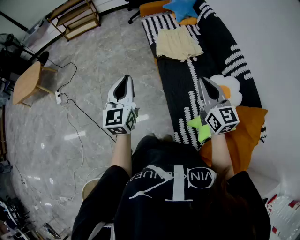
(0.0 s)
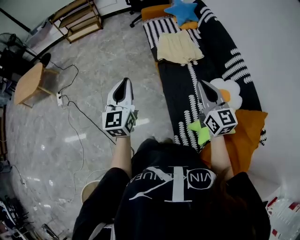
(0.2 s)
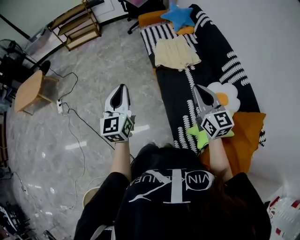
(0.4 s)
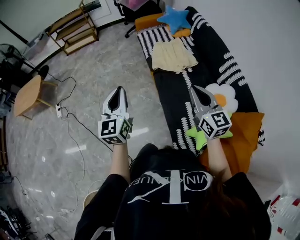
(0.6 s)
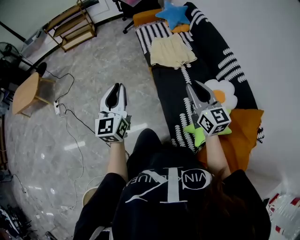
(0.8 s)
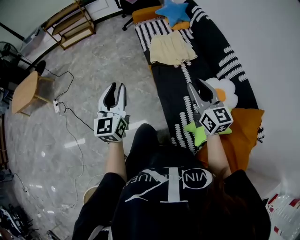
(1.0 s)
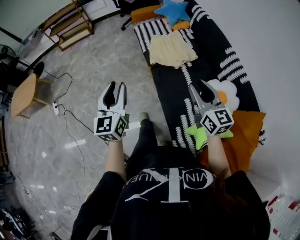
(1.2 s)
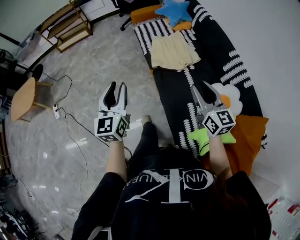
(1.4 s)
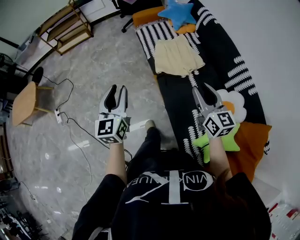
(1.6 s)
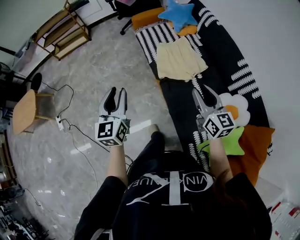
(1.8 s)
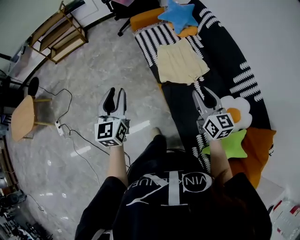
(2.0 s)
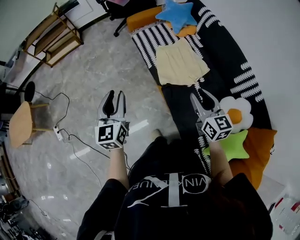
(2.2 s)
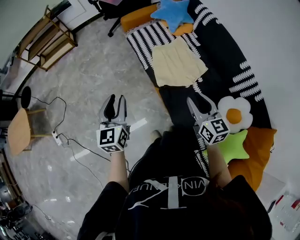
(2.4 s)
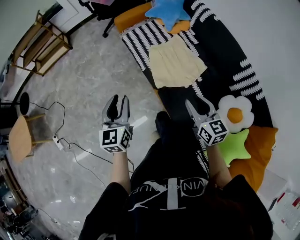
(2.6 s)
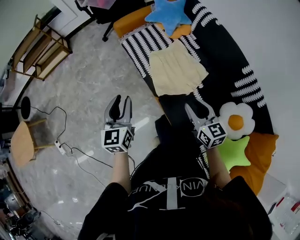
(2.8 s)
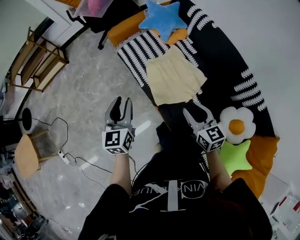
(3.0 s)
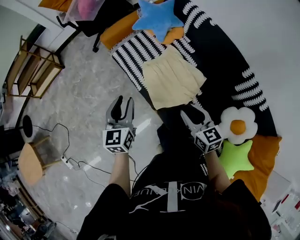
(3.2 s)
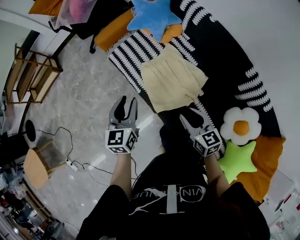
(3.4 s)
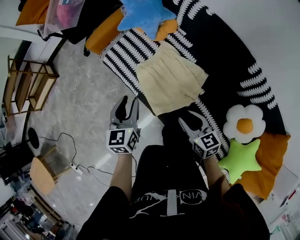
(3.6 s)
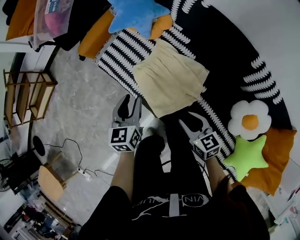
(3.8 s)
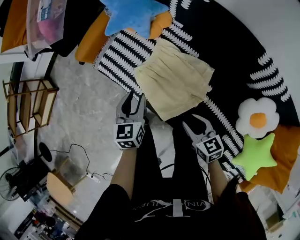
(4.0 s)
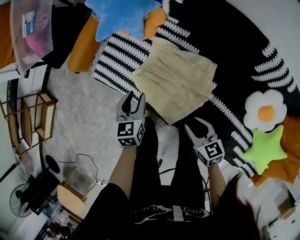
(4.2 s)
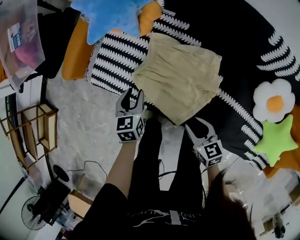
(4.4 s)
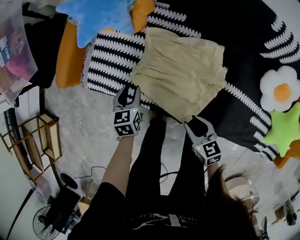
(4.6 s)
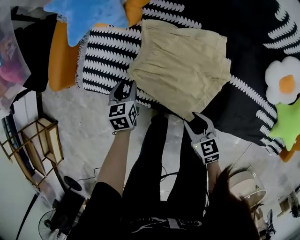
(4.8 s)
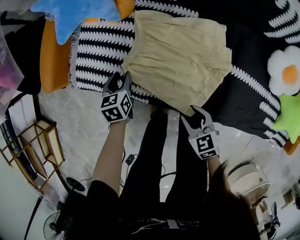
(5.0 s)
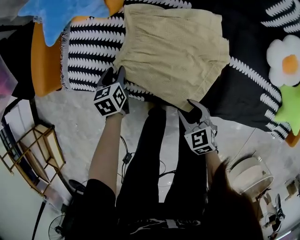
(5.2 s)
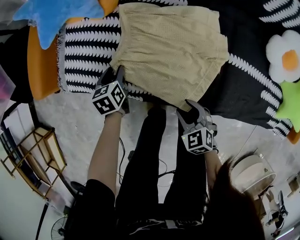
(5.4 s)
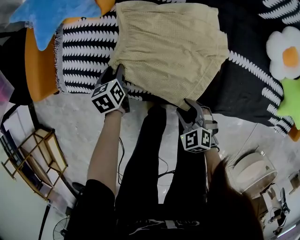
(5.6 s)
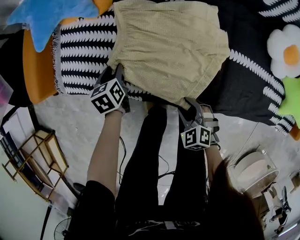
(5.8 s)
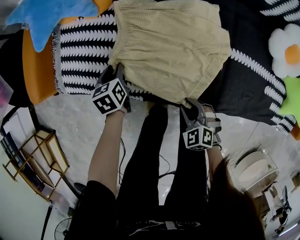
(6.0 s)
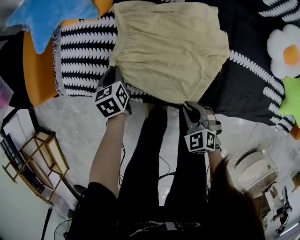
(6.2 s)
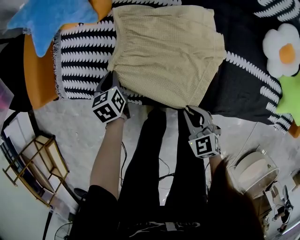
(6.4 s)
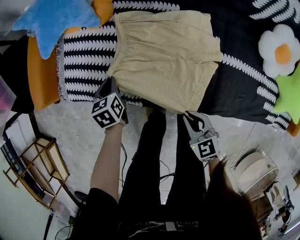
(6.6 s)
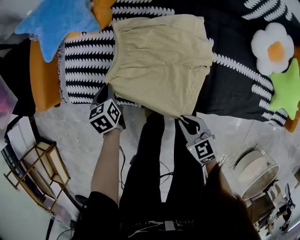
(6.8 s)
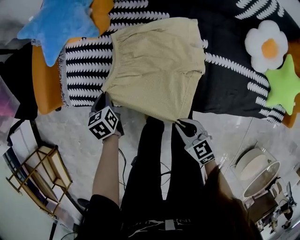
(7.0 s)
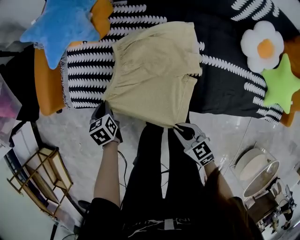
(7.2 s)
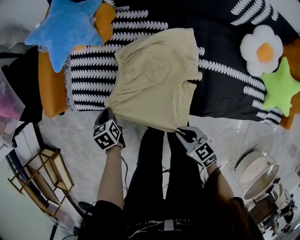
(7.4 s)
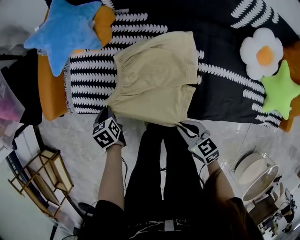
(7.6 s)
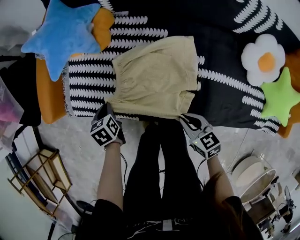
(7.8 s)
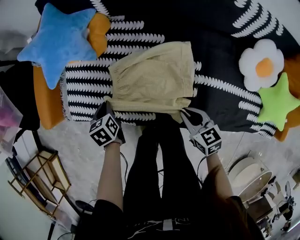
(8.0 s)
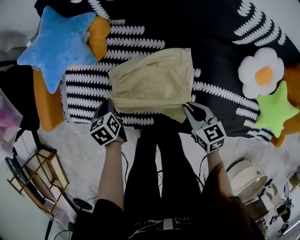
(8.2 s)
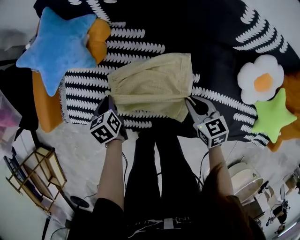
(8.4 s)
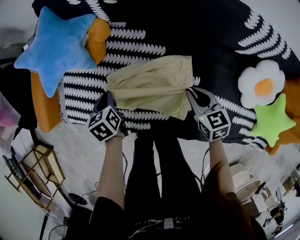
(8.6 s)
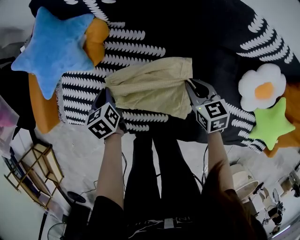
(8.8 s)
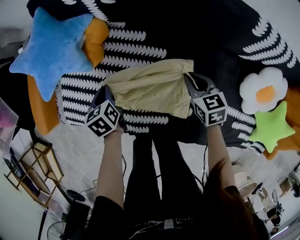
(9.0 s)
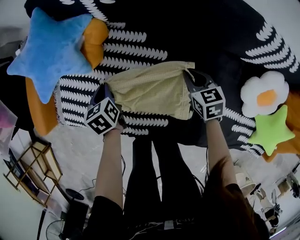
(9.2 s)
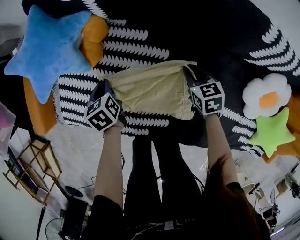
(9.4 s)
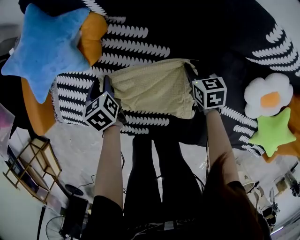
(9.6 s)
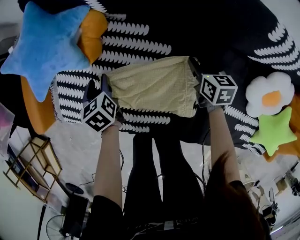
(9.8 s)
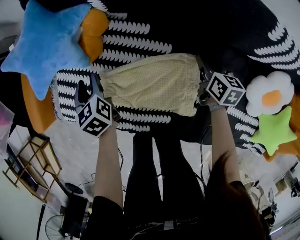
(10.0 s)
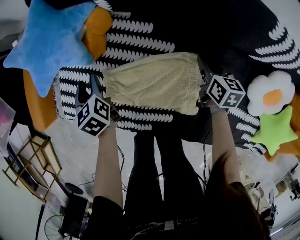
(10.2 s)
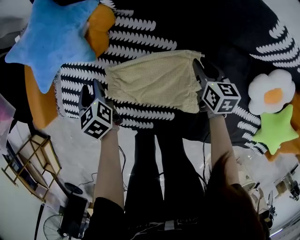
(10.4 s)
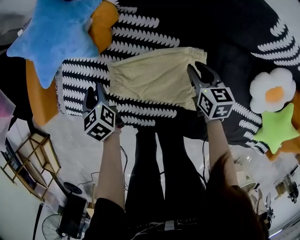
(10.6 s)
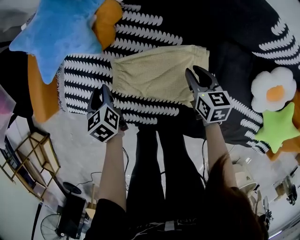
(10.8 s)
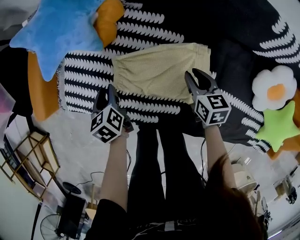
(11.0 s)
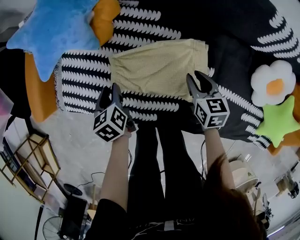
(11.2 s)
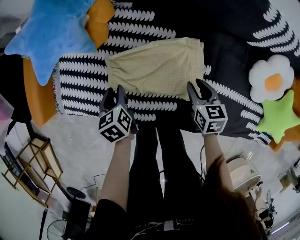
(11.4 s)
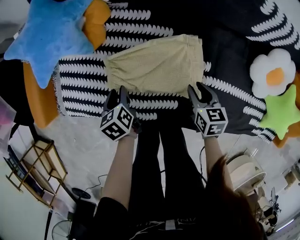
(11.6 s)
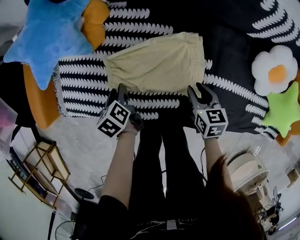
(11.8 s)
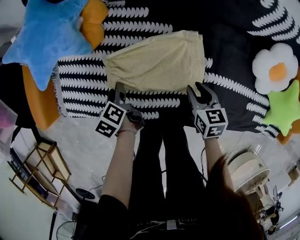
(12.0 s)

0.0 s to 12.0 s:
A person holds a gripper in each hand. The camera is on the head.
0.0 to 1.6 s: The two grippers go about 15 cm forward. The right gripper opens its fingers.
1.6 to 3.0 s: The left gripper is displaced forward by some 35 cm. Meanwhile the right gripper heads forward and downward, covering some 30 cm.
3.0 to 4.4 s: The grippers both shift downward by about 30 cm. The right gripper changes its angle by some 30 degrees, while the left gripper rotates approximately 40 degrees.
4.4 to 6.0 s: Both grippers travel together downward, some 20 cm. The right gripper rotates approximately 40 degrees.
6.0 to 7.6 s: The right gripper shifts approximately 15 cm upward, rotates some 40 degrees, and closes its fingers; the left gripper travels upward and to the left by about 10 cm.
7.6 to 9.0 s: The right gripper shifts about 35 cm forward and to the right; the left gripper travels forward and to the right by about 25 cm.
9.0 to 10.4 s: The left gripper goes approximately 5 cm to the left.
10.4 to 12.0 s: The left gripper travels backward and downward by approximately 10 cm, and turns by about 30 degrees. The right gripper travels backward and to the left by approximately 20 cm.

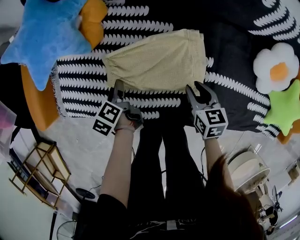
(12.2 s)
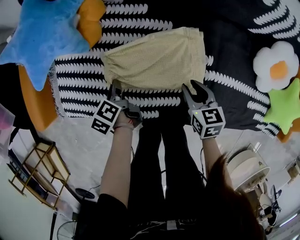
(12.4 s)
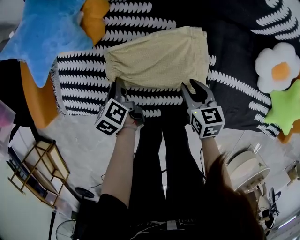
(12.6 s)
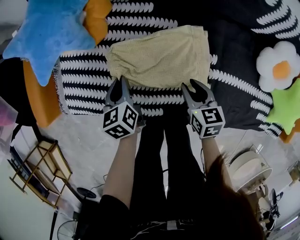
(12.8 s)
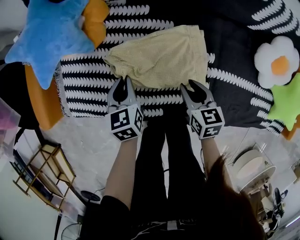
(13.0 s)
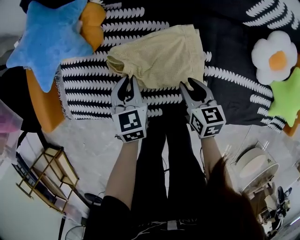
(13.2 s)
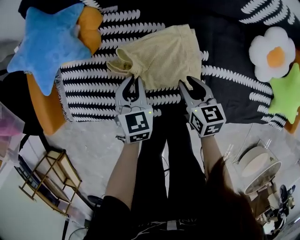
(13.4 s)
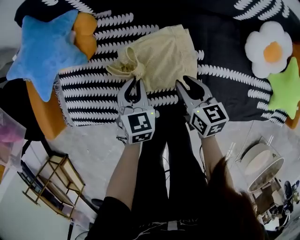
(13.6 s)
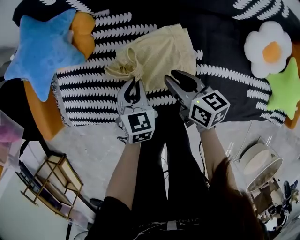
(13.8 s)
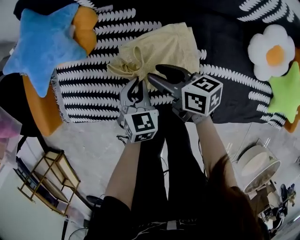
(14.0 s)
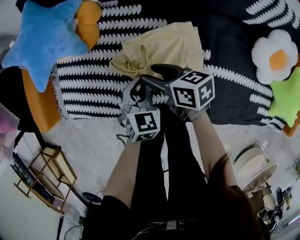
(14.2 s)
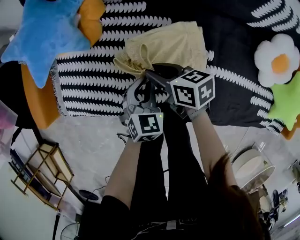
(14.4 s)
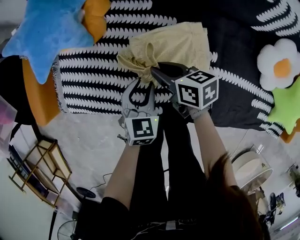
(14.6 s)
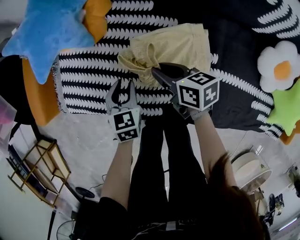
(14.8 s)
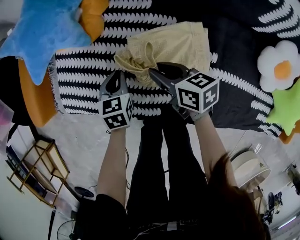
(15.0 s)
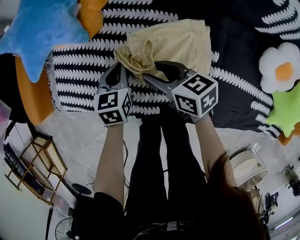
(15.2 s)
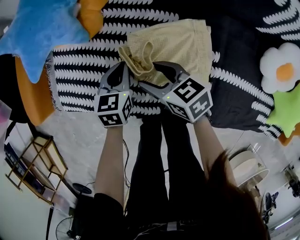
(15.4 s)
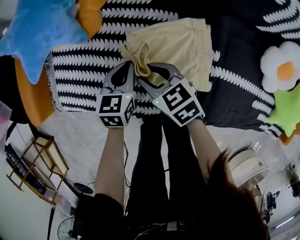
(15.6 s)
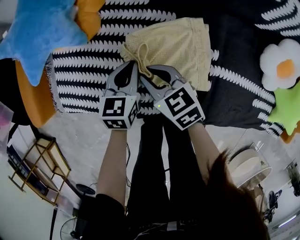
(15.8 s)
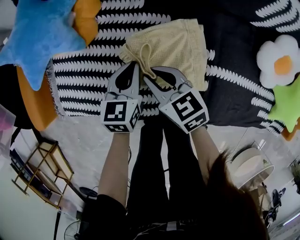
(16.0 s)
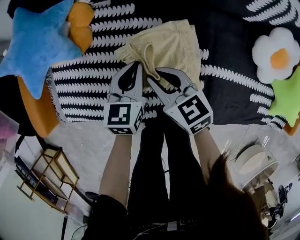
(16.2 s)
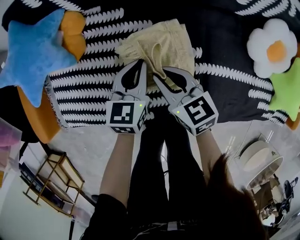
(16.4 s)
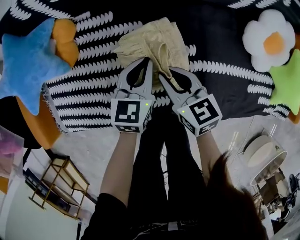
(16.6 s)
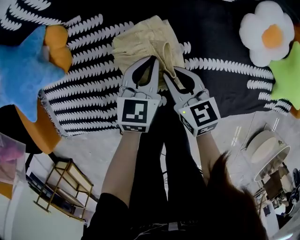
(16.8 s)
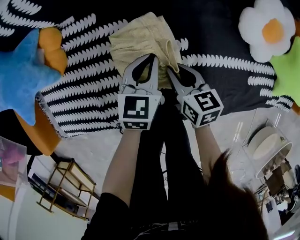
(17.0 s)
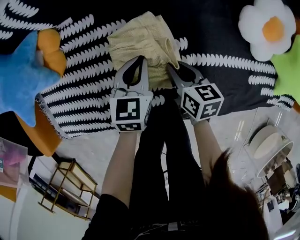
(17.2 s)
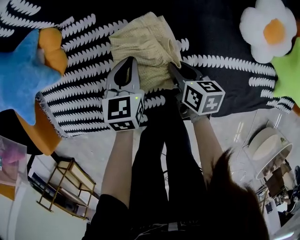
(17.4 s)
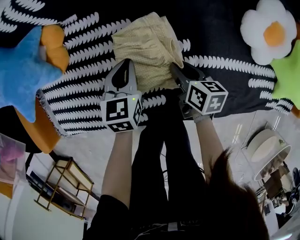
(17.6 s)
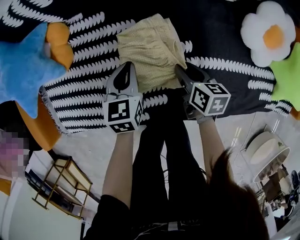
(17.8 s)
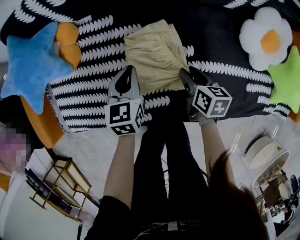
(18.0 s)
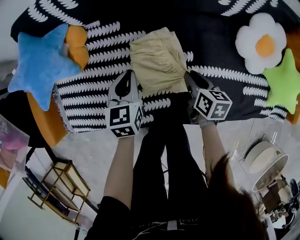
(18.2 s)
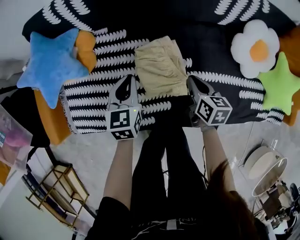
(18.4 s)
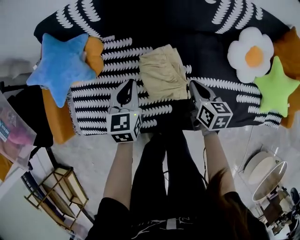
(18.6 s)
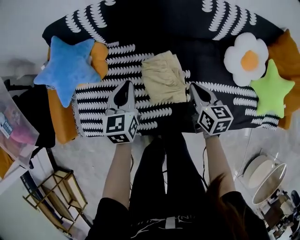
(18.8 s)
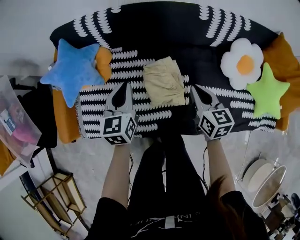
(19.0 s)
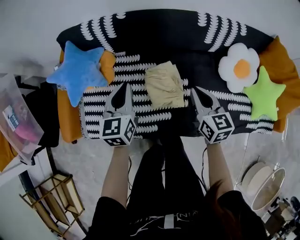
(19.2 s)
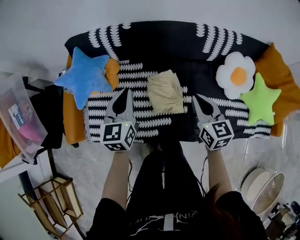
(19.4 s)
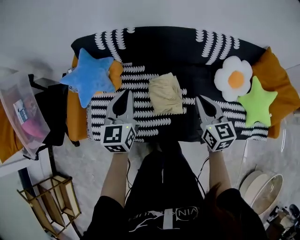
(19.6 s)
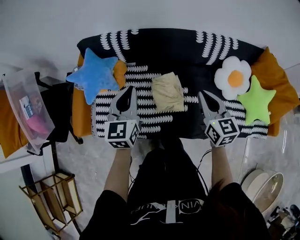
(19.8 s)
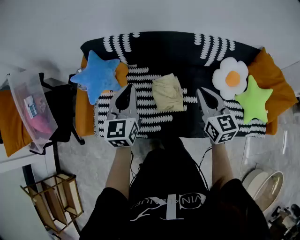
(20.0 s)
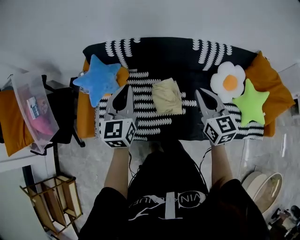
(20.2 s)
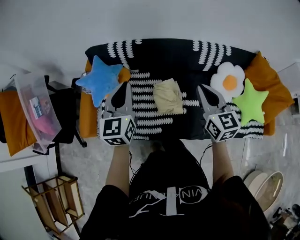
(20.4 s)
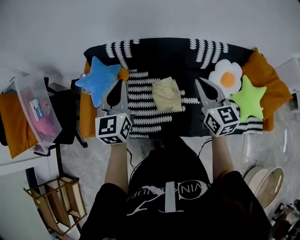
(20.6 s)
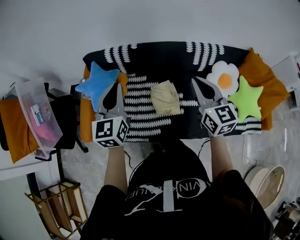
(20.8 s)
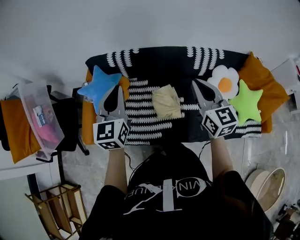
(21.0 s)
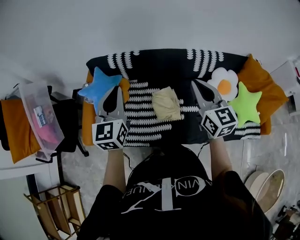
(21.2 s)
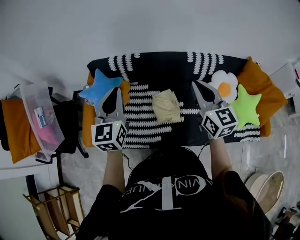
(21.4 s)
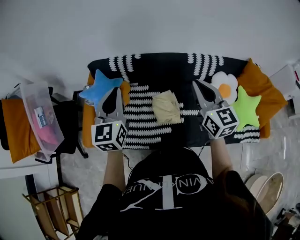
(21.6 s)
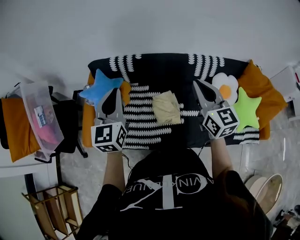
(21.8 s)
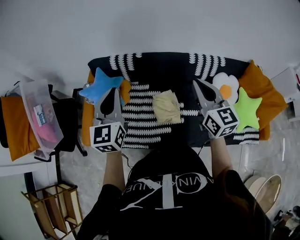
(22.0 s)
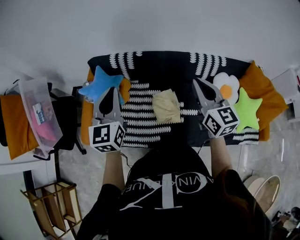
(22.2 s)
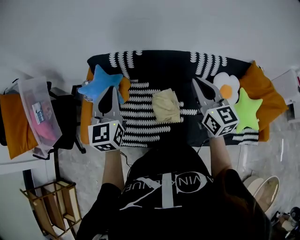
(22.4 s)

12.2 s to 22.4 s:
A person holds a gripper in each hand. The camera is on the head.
12.2 to 13.6 s: The right gripper heads upward, covering some 5 cm, while the left gripper goes some 15 cm to the right and upward, and rolls clockwise, seen from behind, by roughly 70 degrees.
13.6 to 15.2 s: The left gripper goes some 10 cm to the left, downward and forward, and rotates some 20 degrees. Meanwhile the right gripper travels to the left and forward by approximately 15 cm, and swivels about 30 degrees.
15.2 to 16.6 s: The left gripper changes place by approximately 20 cm, and swivels approximately 30 degrees; the right gripper moves approximately 15 cm, changes its angle by about 30 degrees, and closes.
16.6 to 18.0 s: The right gripper moves to the right and downward, roughly 10 cm, changes its angle by about 30 degrees, and opens its fingers. The left gripper shifts some 5 cm to the left.
18.0 to 19.4 s: The grippers both shift upward by roughly 30 cm. The right gripper changes its angle by about 40 degrees, and closes up, while the left gripper rotates roughly 20 degrees.
19.4 to 21.0 s: The grippers both shift upward by roughly 25 cm.
21.0 to 22.4 s: The grippers stay close to where they were, moving slightly.

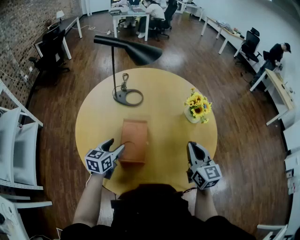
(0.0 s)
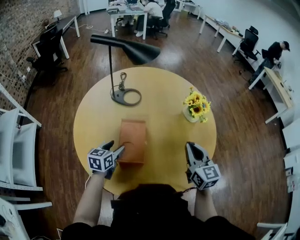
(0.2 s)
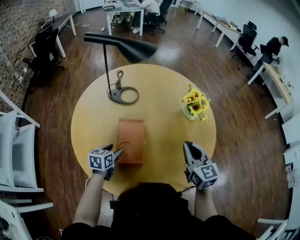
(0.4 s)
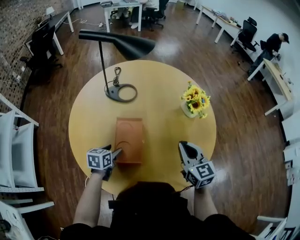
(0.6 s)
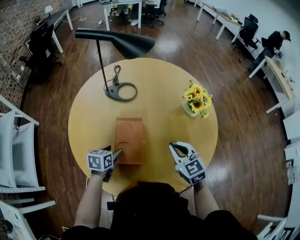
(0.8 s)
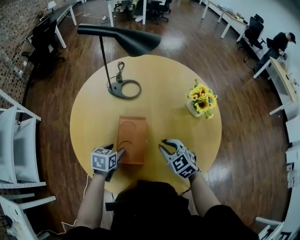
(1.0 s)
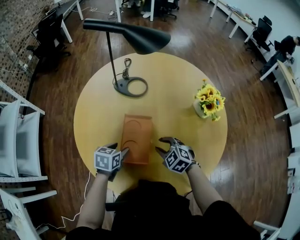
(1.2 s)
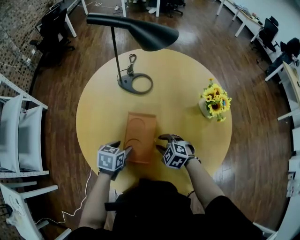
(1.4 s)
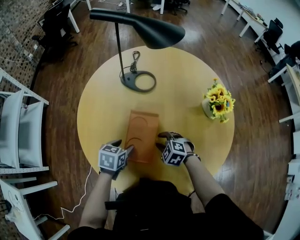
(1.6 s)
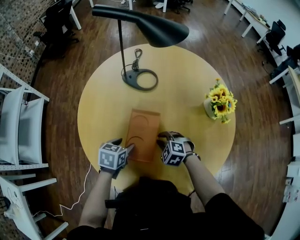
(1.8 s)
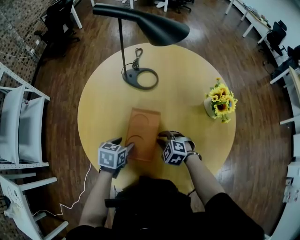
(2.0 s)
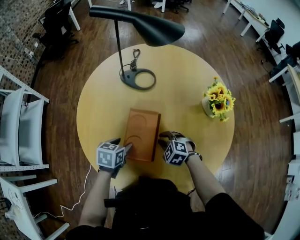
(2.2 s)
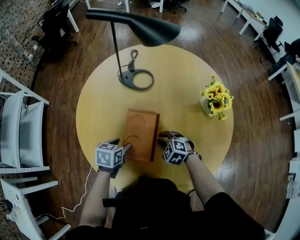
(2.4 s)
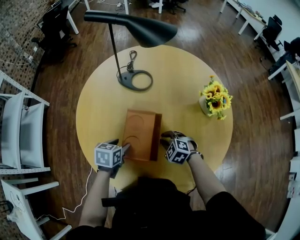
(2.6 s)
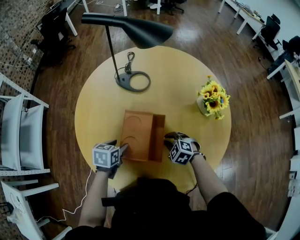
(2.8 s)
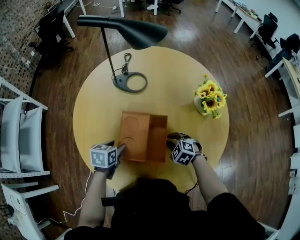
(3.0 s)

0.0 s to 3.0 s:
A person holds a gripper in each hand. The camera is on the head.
0.0 to 1.6 s: The left gripper is displaced downward by some 10 cm, and rotates some 30 degrees, while the right gripper is displaced downward and to the left by roughly 30 cm, tips its fingers downward by some 50 degrees, and opens.
1.6 to 3.0 s: The right gripper moves to the right, roughly 10 cm.
